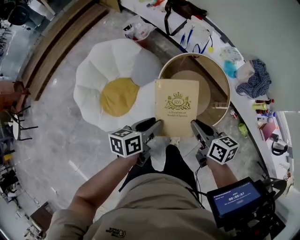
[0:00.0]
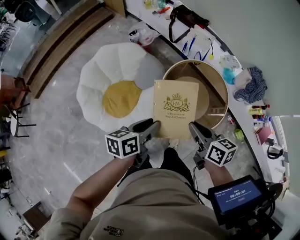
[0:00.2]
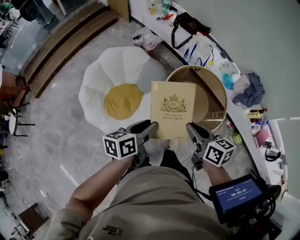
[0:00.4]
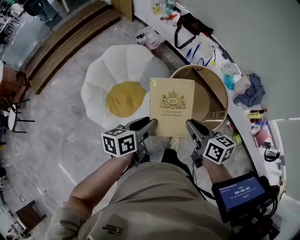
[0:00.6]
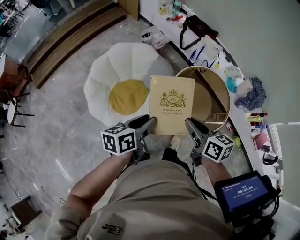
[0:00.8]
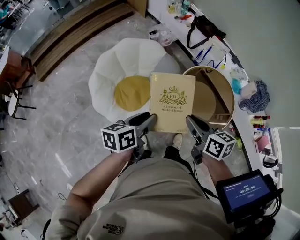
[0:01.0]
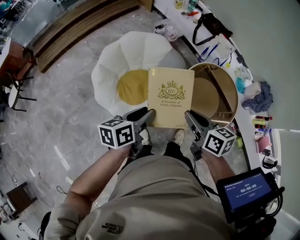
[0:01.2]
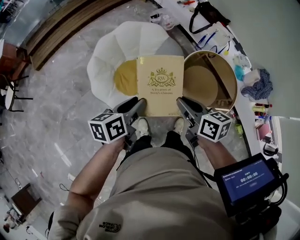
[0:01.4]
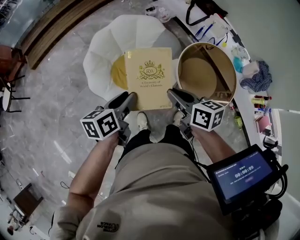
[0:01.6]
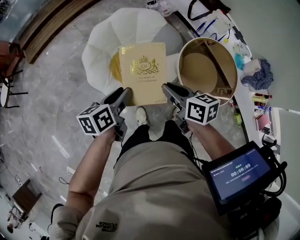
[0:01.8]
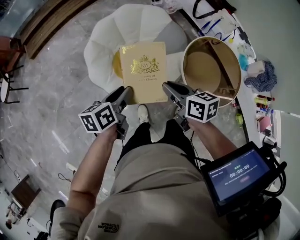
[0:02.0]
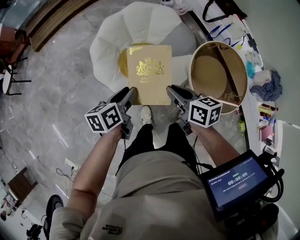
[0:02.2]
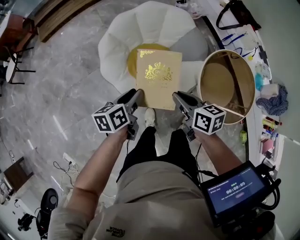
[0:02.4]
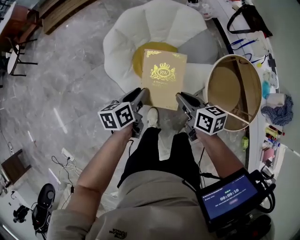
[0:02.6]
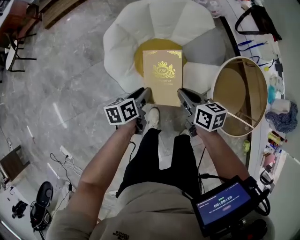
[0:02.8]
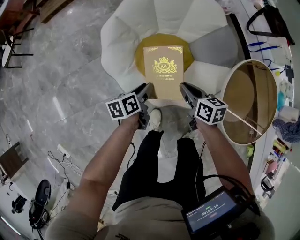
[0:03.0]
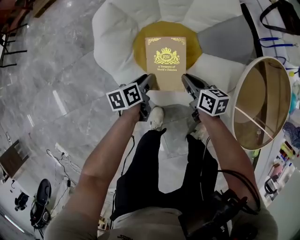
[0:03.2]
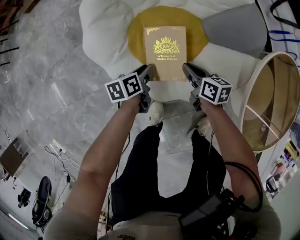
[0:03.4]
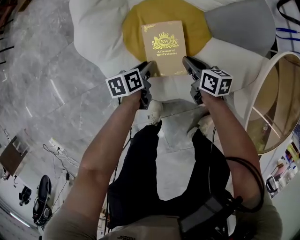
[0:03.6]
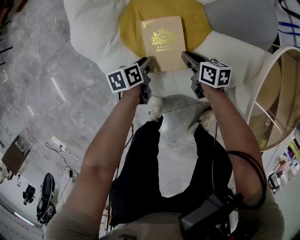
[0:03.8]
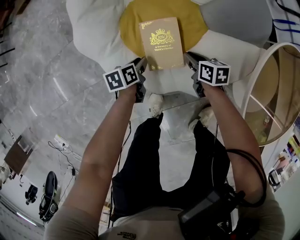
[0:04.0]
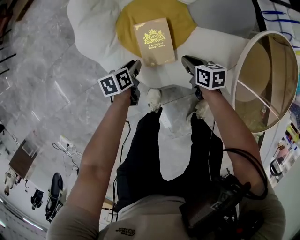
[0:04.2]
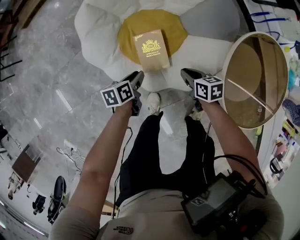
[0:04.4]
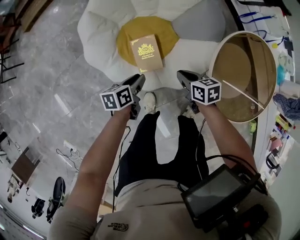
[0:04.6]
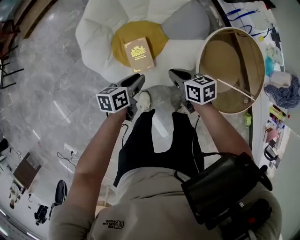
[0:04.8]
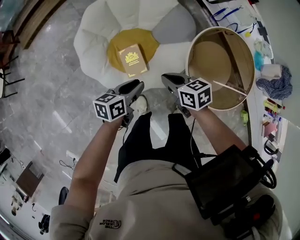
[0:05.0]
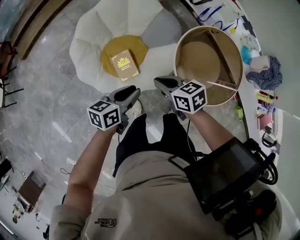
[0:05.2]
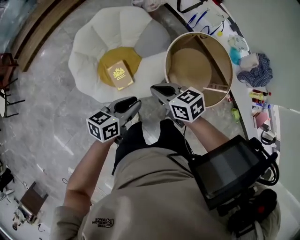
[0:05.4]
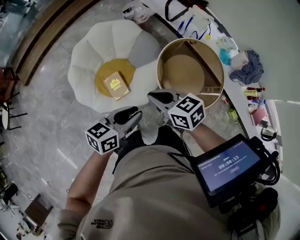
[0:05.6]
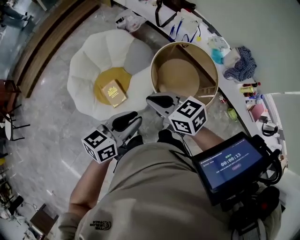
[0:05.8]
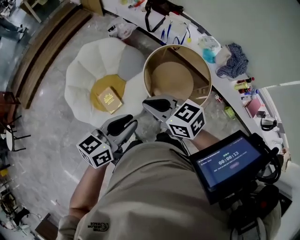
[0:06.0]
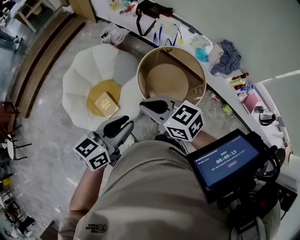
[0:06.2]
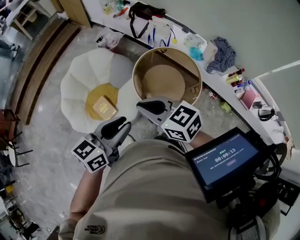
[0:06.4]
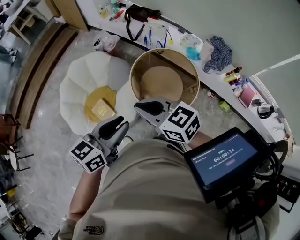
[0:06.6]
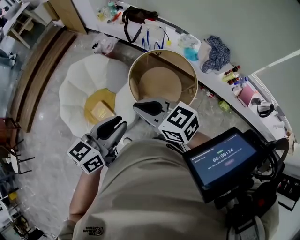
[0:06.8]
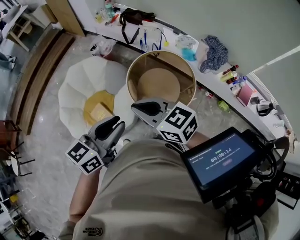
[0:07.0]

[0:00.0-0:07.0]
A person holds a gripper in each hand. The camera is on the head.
0:00.0 to 0:01.4: Both grippers travel together to the left, roughly 25 cm.
0:01.4 to 0:02.8: The right gripper shifts about 30 cm downward, to the left and forward; the left gripper shifts roughly 30 cm downward, and changes its angle by roughly 20 degrees.
0:02.8 to 0:04.2: The grippers both shift downward by roughly 35 cm.
0:04.2 to 0:05.6: The right gripper heads upward, covering approximately 60 cm, and rotates approximately 30 degrees. Meanwhile the left gripper travels upward and to the right by about 60 cm, and tips its fingers upward by some 30 degrees.
0:05.6 to 0:07.0: The two grippers go some 20 cm upward and to the right.

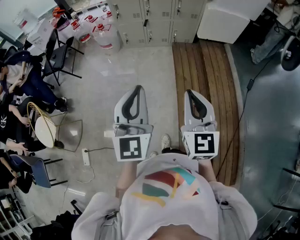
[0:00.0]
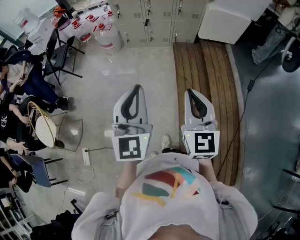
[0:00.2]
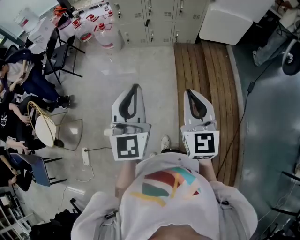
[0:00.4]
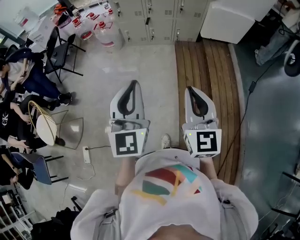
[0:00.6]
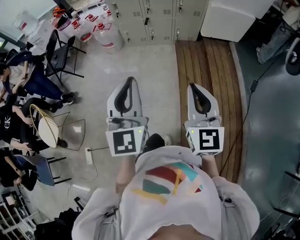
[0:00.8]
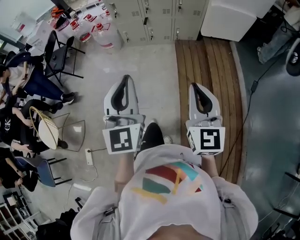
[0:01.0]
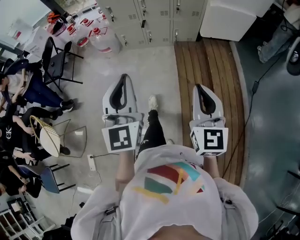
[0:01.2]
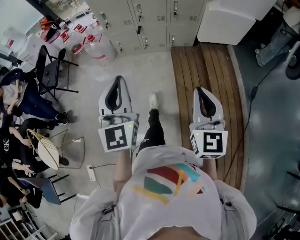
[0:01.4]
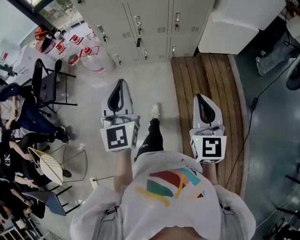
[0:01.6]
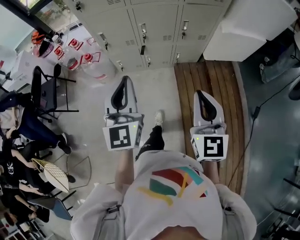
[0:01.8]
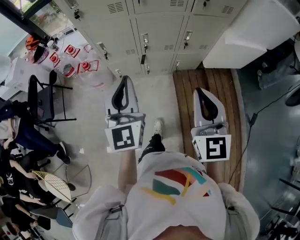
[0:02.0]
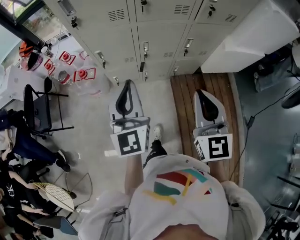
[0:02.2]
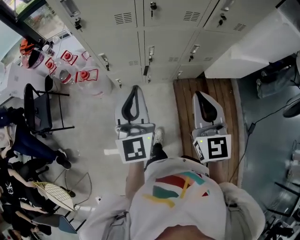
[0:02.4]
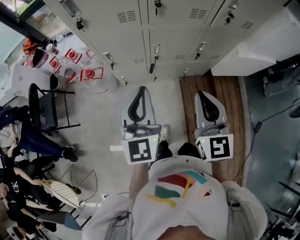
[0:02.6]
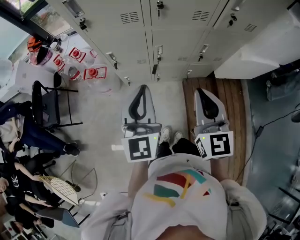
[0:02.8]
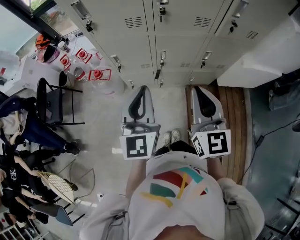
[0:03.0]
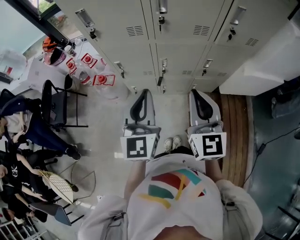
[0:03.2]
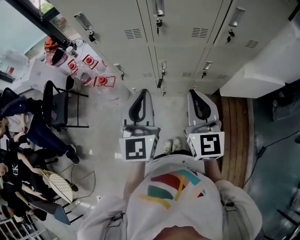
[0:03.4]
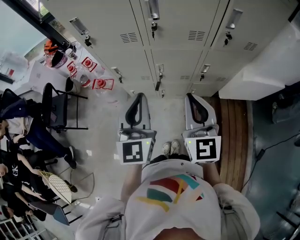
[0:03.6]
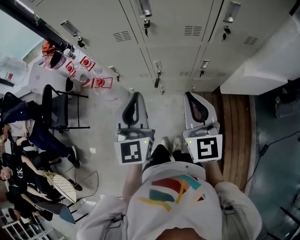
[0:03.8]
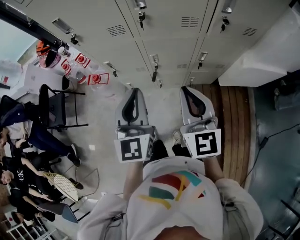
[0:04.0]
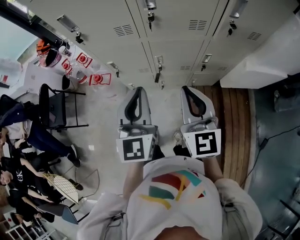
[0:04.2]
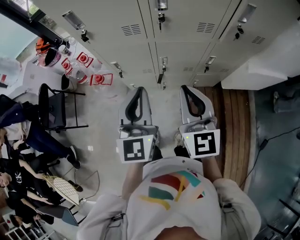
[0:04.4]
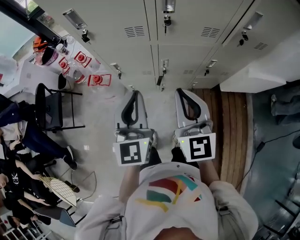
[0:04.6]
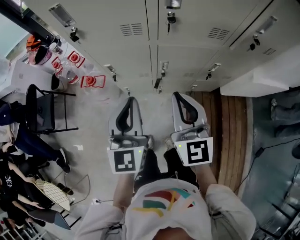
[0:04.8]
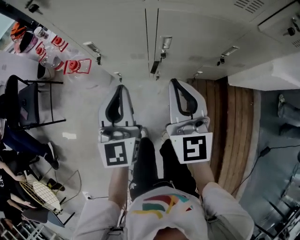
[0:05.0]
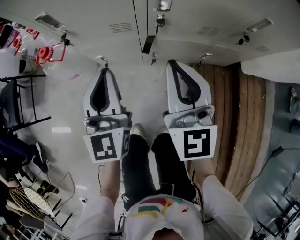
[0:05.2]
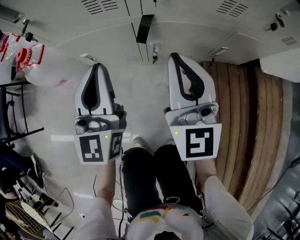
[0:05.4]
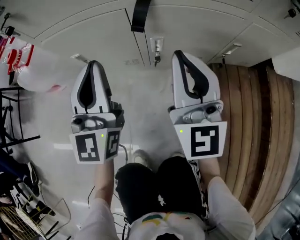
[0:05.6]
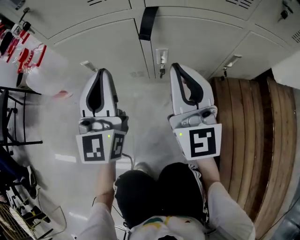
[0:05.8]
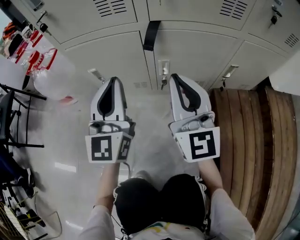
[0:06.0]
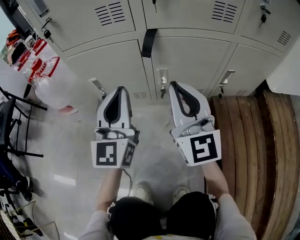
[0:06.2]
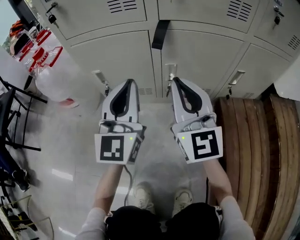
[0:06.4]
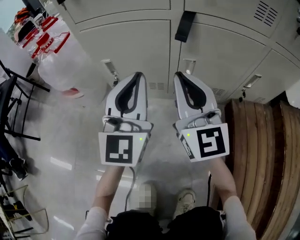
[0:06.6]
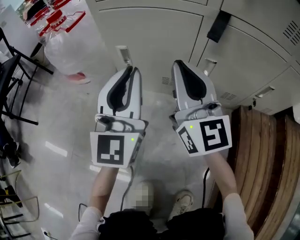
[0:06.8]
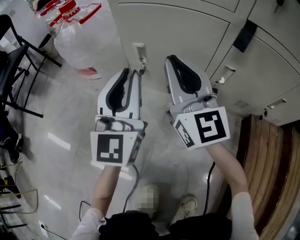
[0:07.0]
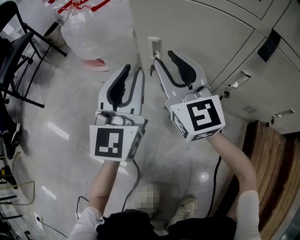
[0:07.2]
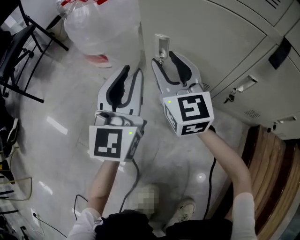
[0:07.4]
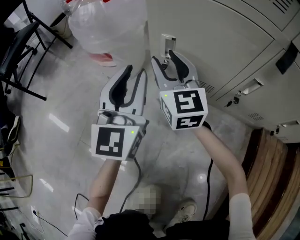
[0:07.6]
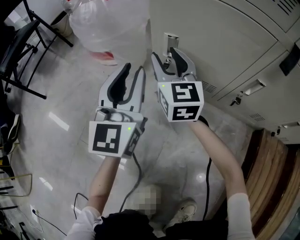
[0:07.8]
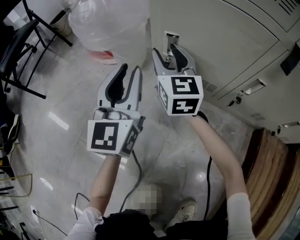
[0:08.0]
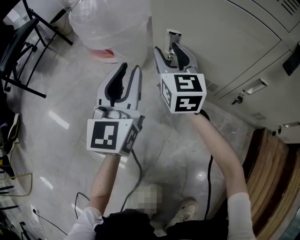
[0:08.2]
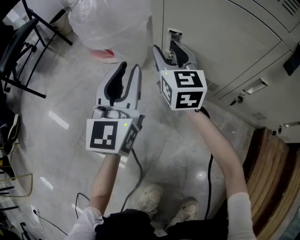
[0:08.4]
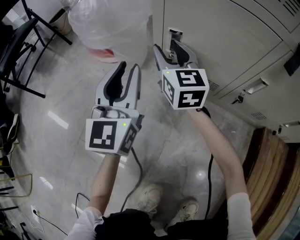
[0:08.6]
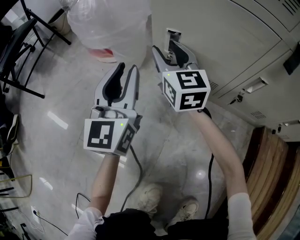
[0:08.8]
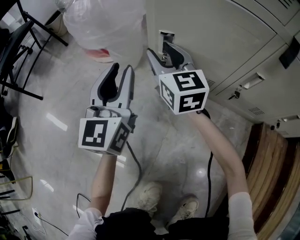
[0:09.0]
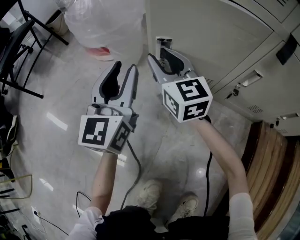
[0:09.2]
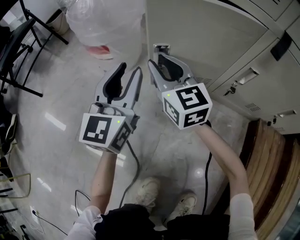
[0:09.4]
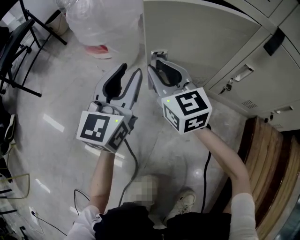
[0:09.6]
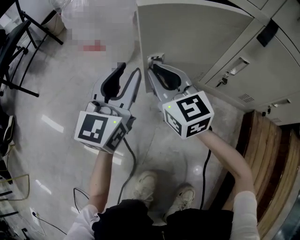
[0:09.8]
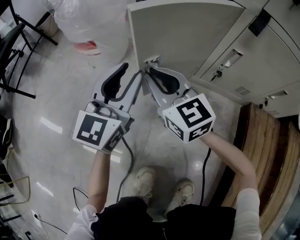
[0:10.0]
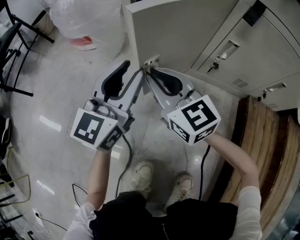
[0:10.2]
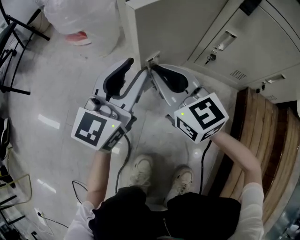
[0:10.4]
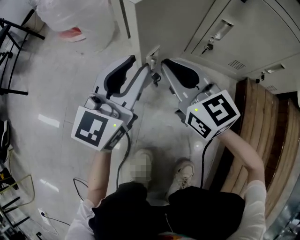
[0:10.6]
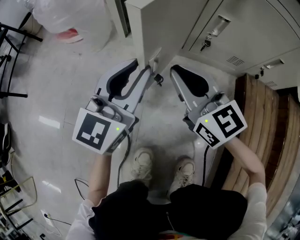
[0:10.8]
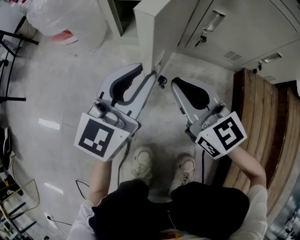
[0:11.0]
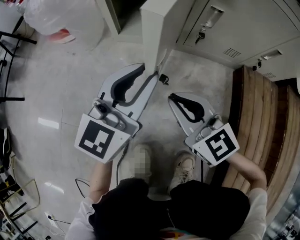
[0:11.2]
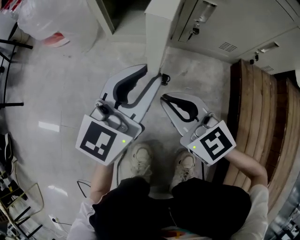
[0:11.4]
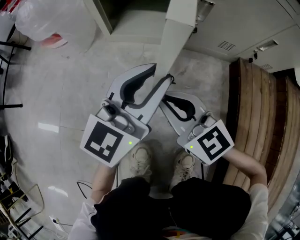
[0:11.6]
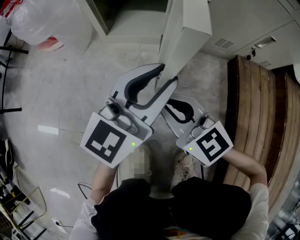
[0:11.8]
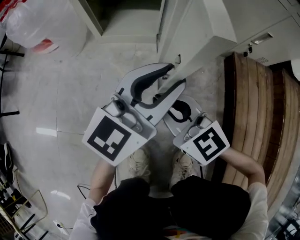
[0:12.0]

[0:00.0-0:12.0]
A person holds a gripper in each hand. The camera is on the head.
0:00.0 to 0:01.6: The two grippers go some 30 cm forward.
0:01.6 to 0:03.0: The two grippers go about 35 cm forward.
0:03.0 to 0:04.4: The right gripper heads forward, covering approximately 5 cm.
0:04.4 to 0:06.0: The left gripper goes up and down, about 30 cm each way, reversing 2 times, while the right gripper swings up and down, about 30 cm each way, with 2 reversals.
0:06.0 to 0:07.6: The right gripper heads to the left, forward and downward, covering about 35 cm, swivels approximately 30 degrees, and opens up; the left gripper is displaced to the left and downward by about 20 cm.
0:07.6 to 0:09.0: The grippers make only small movements.
0:09.0 to 0:10.4: The left gripper shifts approximately 15 cm backward and to the right, and swivels roughly 30 degrees, while the right gripper is displaced backward by some 20 cm, and closes its fingers.
0:10.4 to 0:12.0: The left gripper shifts roughly 15 cm to the right and backward, and rotates about 30 degrees, while the right gripper is displaced backward and to the right by some 15 cm.

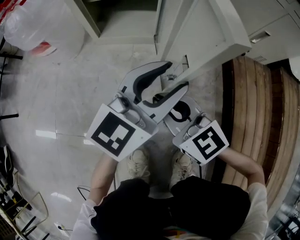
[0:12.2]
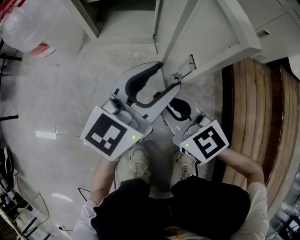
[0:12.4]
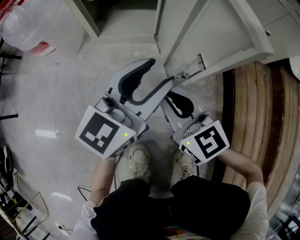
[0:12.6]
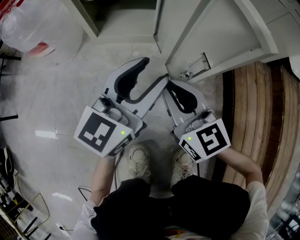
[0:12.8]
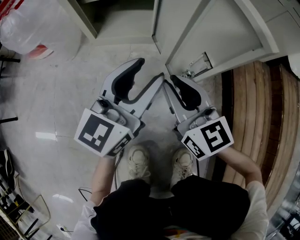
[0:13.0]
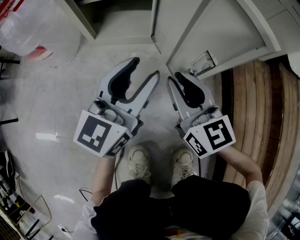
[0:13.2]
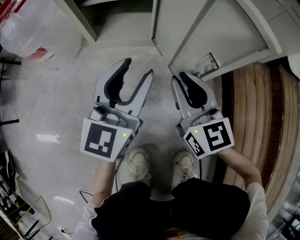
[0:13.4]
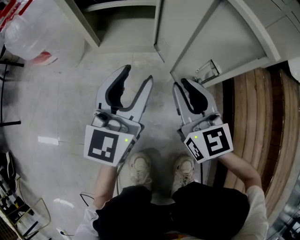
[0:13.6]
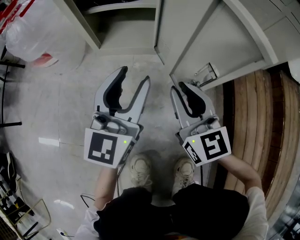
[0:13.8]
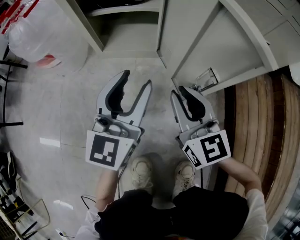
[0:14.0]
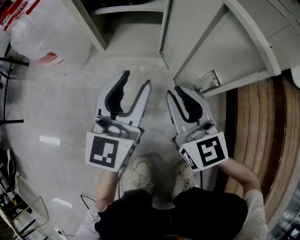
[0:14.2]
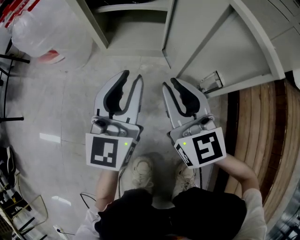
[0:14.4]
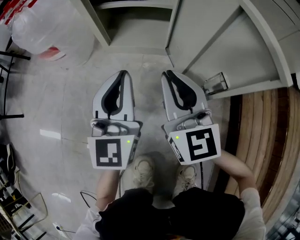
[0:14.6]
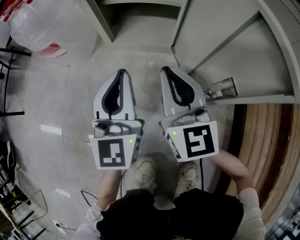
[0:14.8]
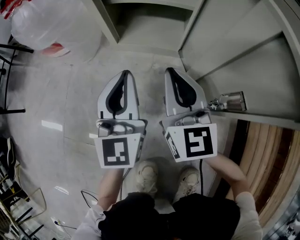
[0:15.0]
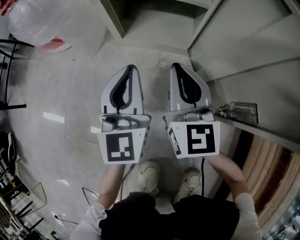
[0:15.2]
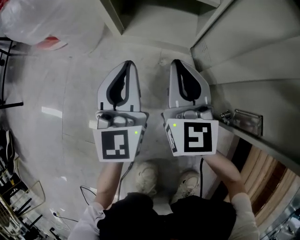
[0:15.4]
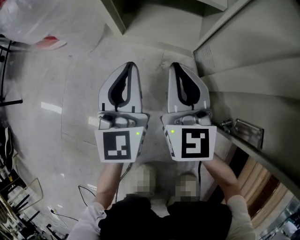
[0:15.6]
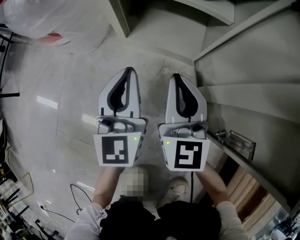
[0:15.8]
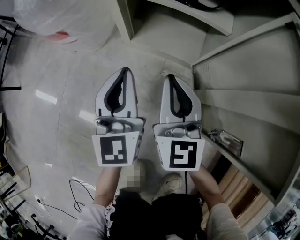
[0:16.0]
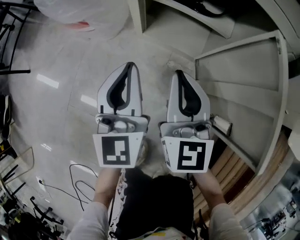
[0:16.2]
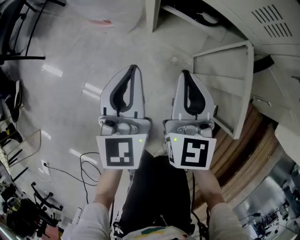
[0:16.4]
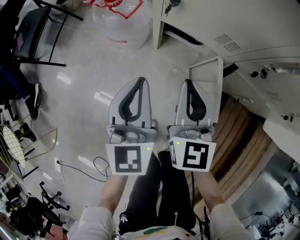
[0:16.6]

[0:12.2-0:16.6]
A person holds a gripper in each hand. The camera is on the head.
0:12.2 to 0:13.6: The right gripper moves forward and to the right, roughly 10 cm, and swivels approximately 20 degrees, while the left gripper is displaced to the left by approximately 10 cm, and rotates about 20 degrees.
0:13.6 to 0:15.2: The left gripper goes roughly 10 cm to the left and forward, changes its angle by about 30 degrees, and closes; the right gripper travels forward and to the left by about 15 cm.
0:15.2 to 0:16.6: The grippers both shift upward by approximately 40 cm.
